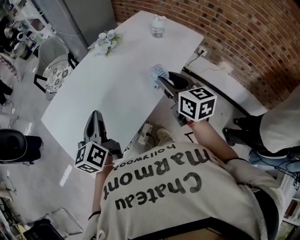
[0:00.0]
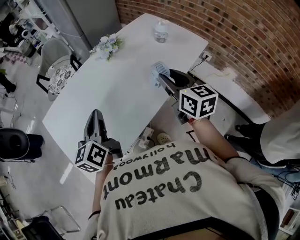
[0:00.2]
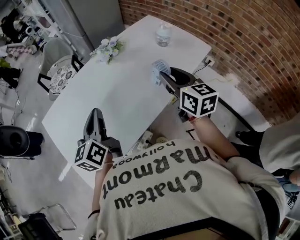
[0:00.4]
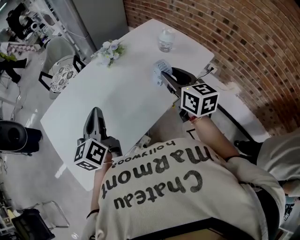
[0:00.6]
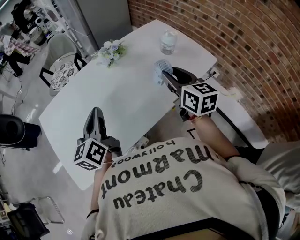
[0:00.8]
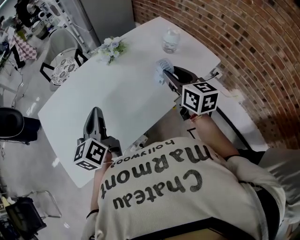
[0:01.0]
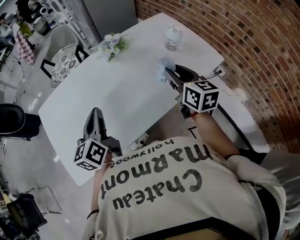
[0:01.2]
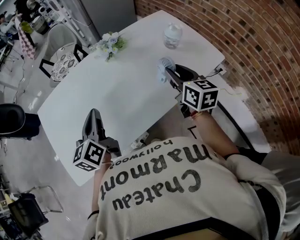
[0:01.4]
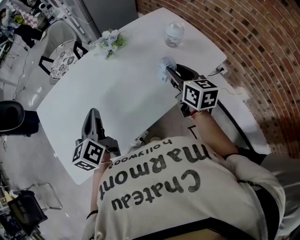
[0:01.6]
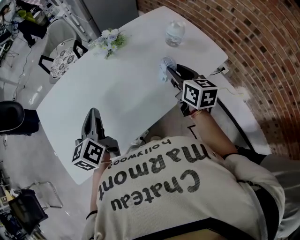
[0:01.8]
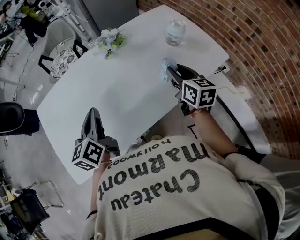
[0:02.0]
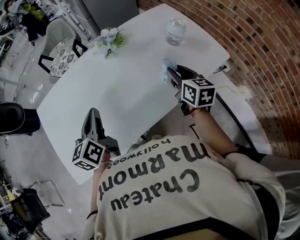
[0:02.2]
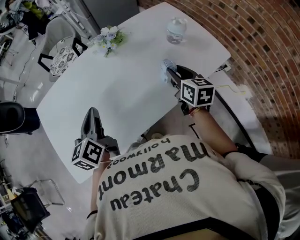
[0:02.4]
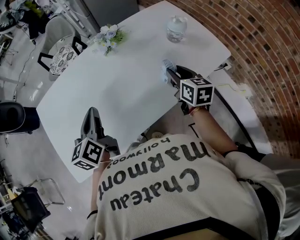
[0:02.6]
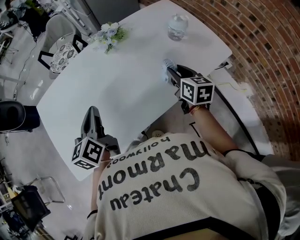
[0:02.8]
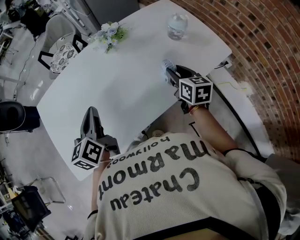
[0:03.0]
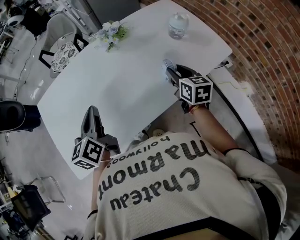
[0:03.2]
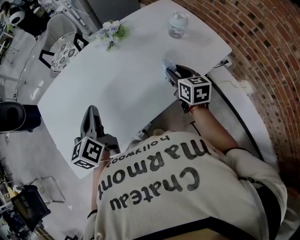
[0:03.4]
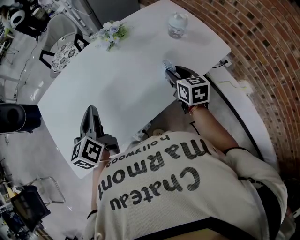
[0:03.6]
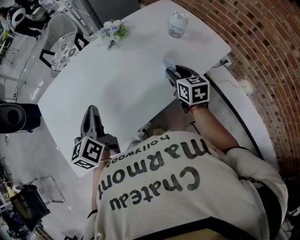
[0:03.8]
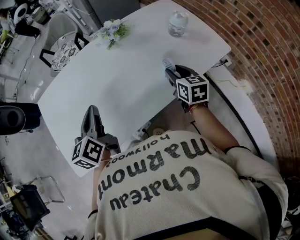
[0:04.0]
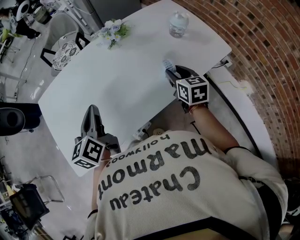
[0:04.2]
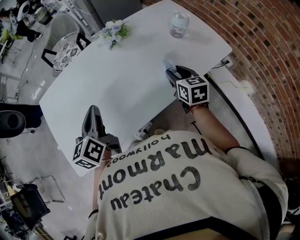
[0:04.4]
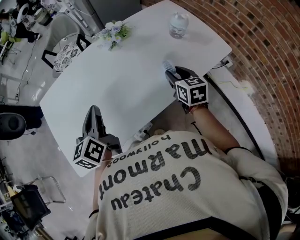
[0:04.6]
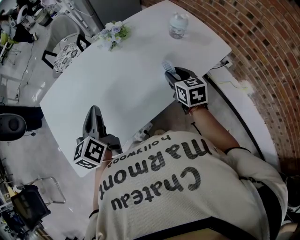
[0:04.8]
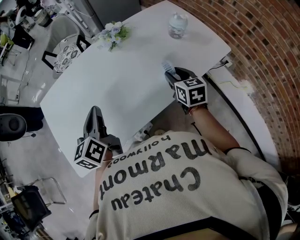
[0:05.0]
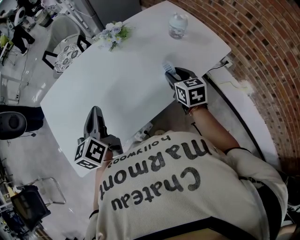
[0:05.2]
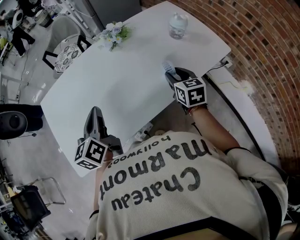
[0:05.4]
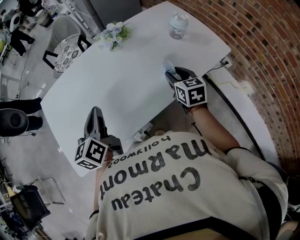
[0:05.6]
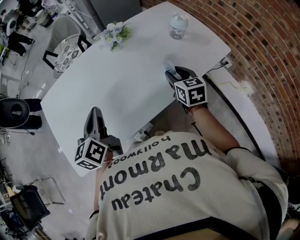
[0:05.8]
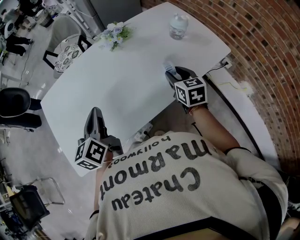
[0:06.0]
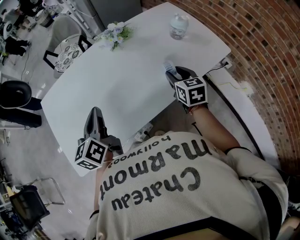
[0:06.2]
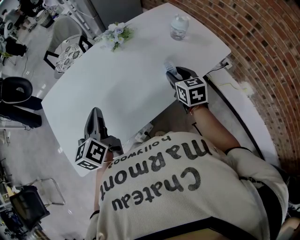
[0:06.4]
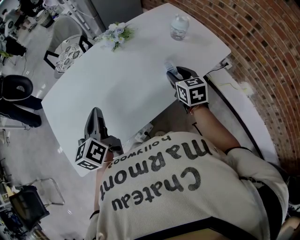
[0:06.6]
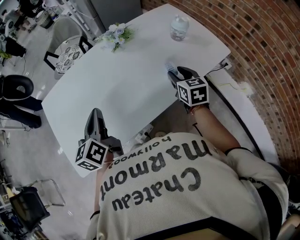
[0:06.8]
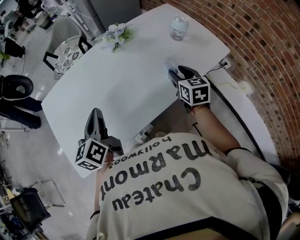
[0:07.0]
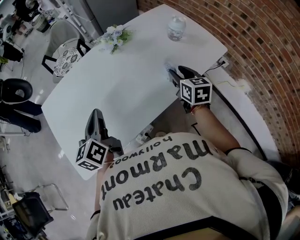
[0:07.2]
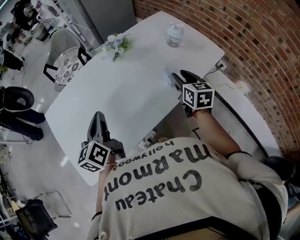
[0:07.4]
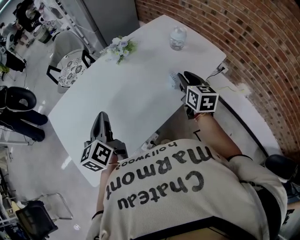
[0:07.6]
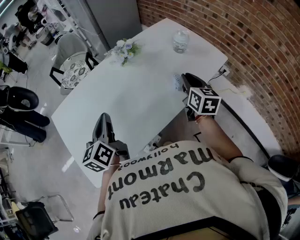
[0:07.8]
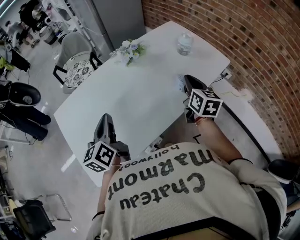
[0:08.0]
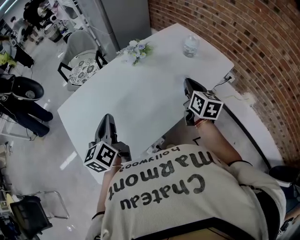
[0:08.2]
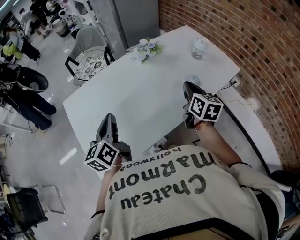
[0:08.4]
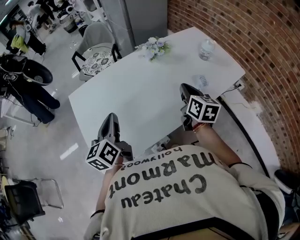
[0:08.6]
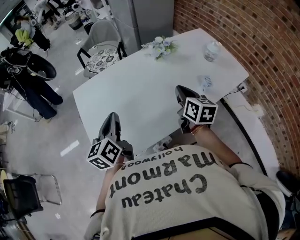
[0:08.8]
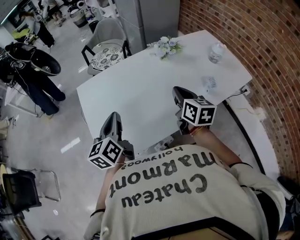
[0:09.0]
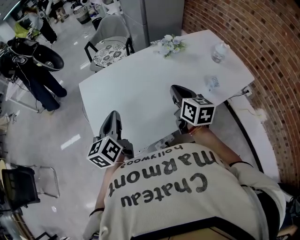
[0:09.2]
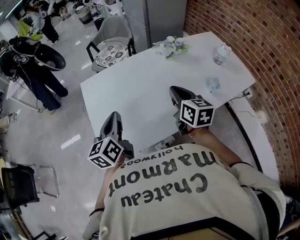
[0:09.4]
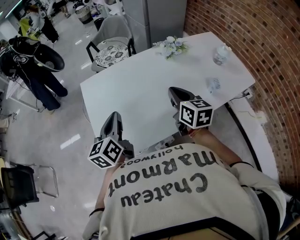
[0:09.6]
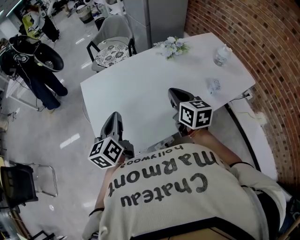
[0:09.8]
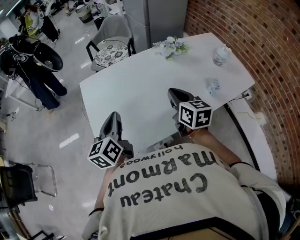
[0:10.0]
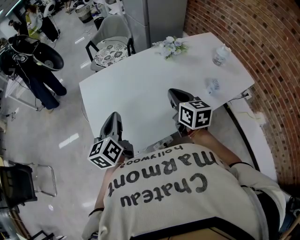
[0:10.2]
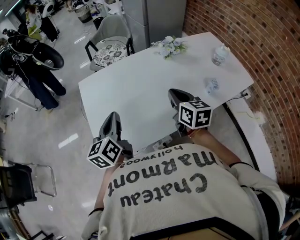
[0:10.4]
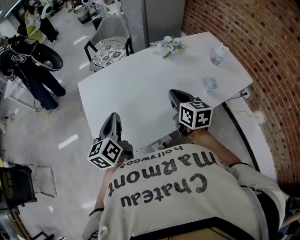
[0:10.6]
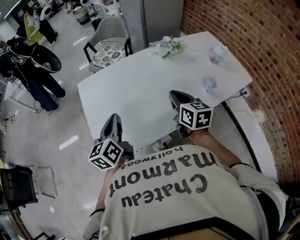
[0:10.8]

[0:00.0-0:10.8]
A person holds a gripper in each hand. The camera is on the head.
0:00.0 to 0:01.6: The right gripper is displaced forward and to the right by approximately 25 cm, while the left gripper shifts approximately 15 cm to the right and forward.
0:01.6 to 0:03.0: The right gripper goes approximately 10 cm downward.
0:03.0 to 0:06.2: There are only small adjustments of the grippers.
0:06.2 to 0:07.8: The right gripper goes about 10 cm upward, rotates about 20 degrees, and closes. Meanwhile the left gripper shifts by approximately 5 cm.
0:07.8 to 0:09.2: The left gripper heads to the left and backward, covering roughly 20 cm. The right gripper is displaced to the left by roughly 25 cm, and changes its angle by about 20 degrees.
0:09.2 to 0:10.8: There are only small adjustments of the grippers.

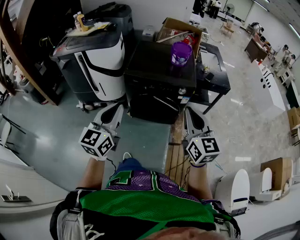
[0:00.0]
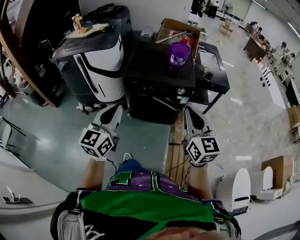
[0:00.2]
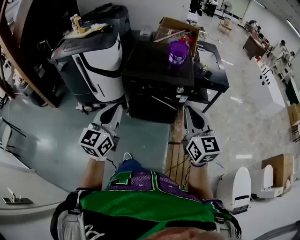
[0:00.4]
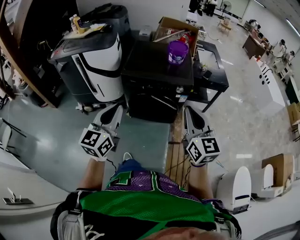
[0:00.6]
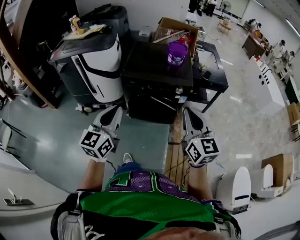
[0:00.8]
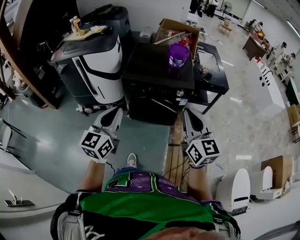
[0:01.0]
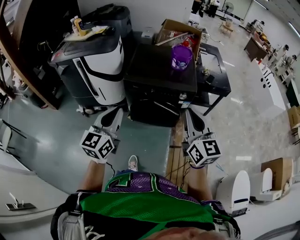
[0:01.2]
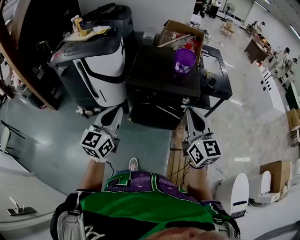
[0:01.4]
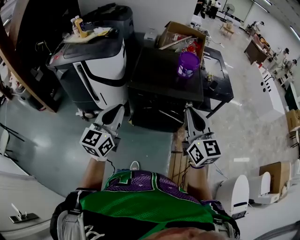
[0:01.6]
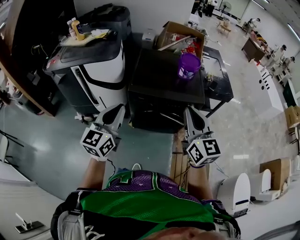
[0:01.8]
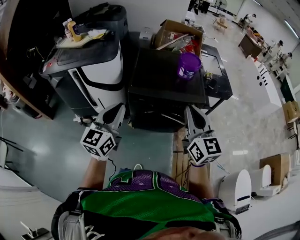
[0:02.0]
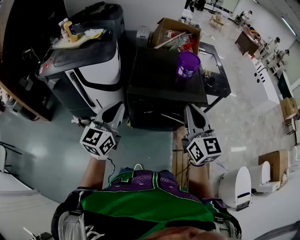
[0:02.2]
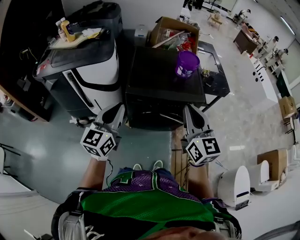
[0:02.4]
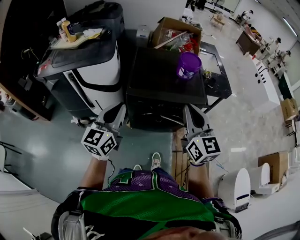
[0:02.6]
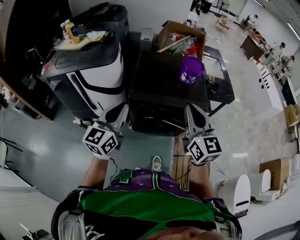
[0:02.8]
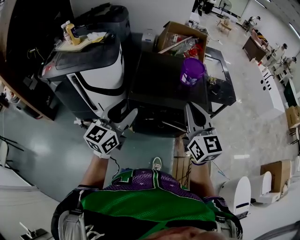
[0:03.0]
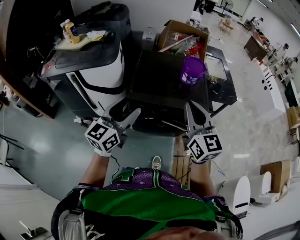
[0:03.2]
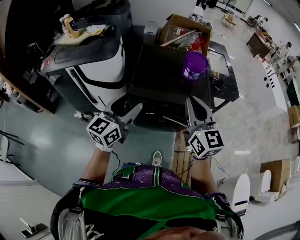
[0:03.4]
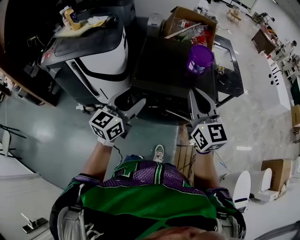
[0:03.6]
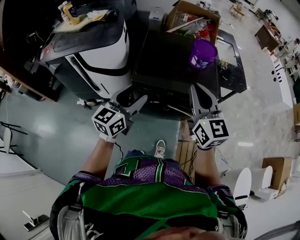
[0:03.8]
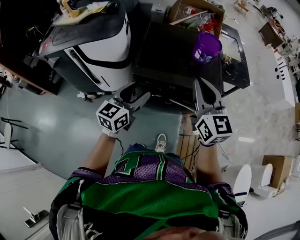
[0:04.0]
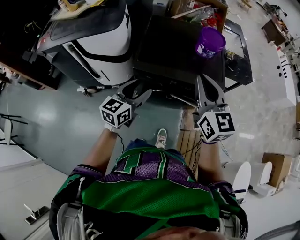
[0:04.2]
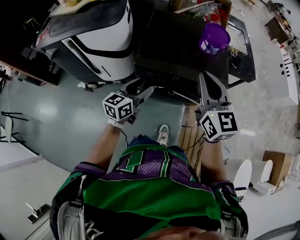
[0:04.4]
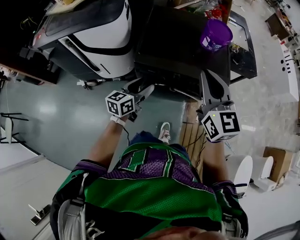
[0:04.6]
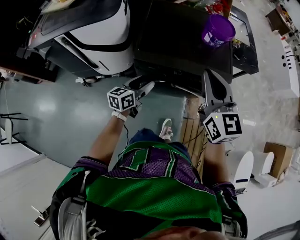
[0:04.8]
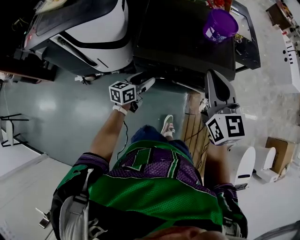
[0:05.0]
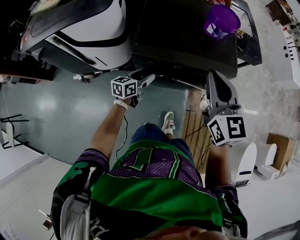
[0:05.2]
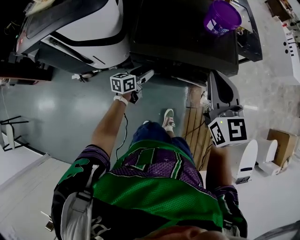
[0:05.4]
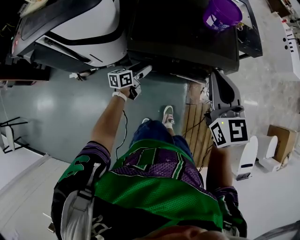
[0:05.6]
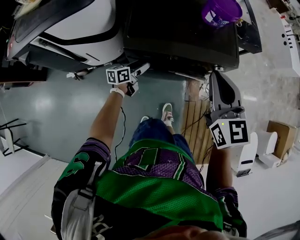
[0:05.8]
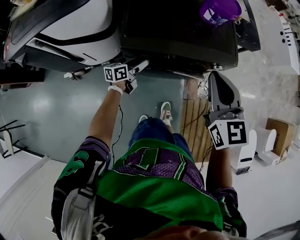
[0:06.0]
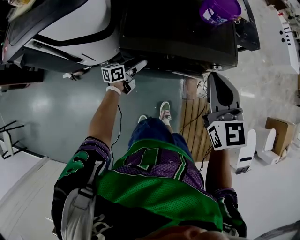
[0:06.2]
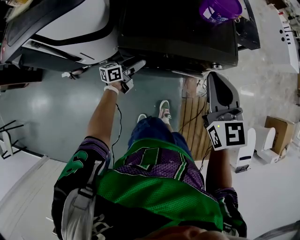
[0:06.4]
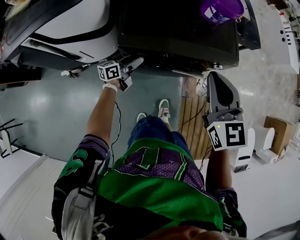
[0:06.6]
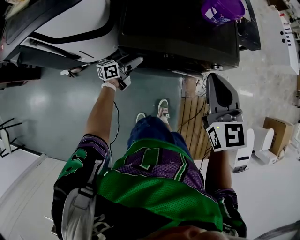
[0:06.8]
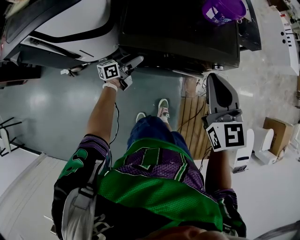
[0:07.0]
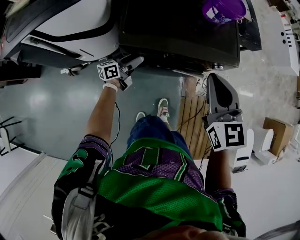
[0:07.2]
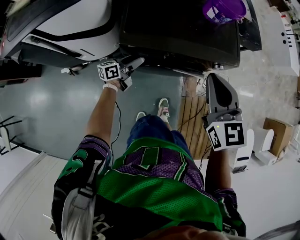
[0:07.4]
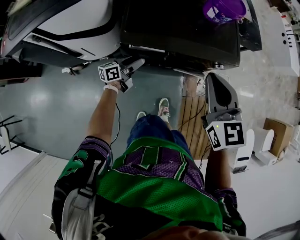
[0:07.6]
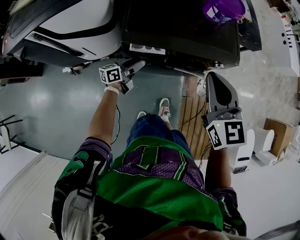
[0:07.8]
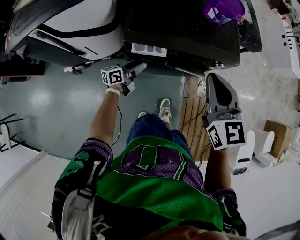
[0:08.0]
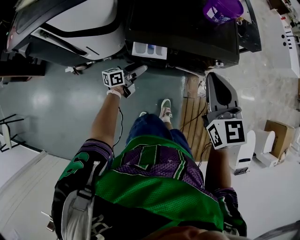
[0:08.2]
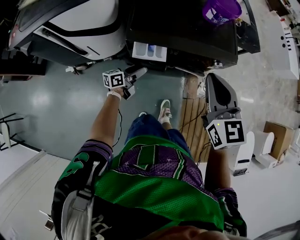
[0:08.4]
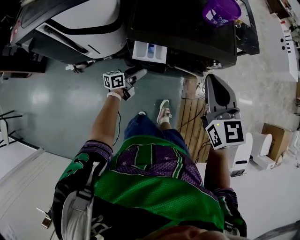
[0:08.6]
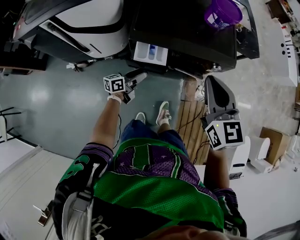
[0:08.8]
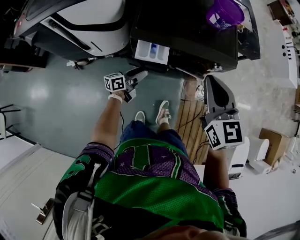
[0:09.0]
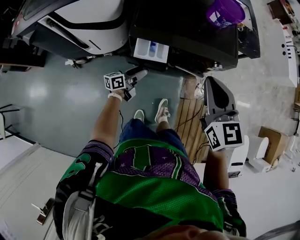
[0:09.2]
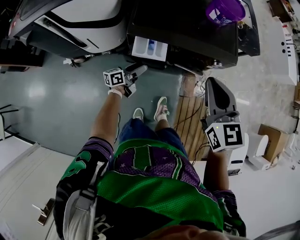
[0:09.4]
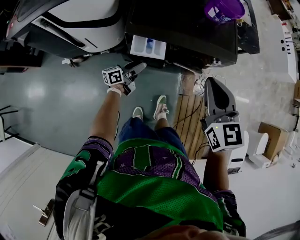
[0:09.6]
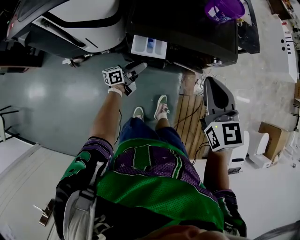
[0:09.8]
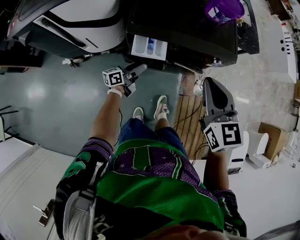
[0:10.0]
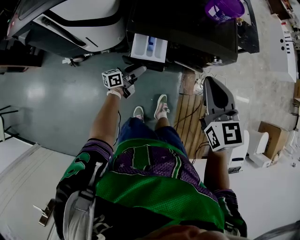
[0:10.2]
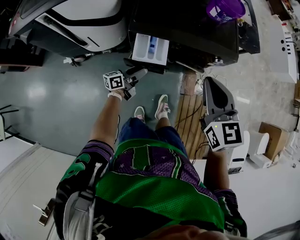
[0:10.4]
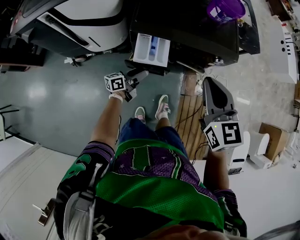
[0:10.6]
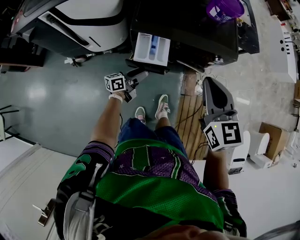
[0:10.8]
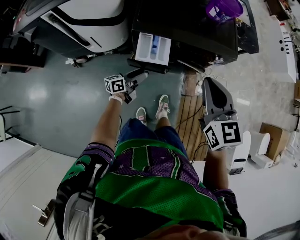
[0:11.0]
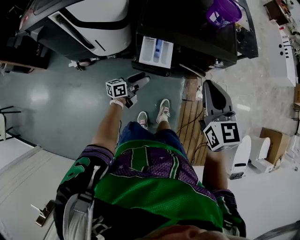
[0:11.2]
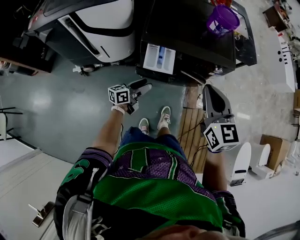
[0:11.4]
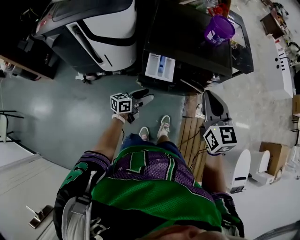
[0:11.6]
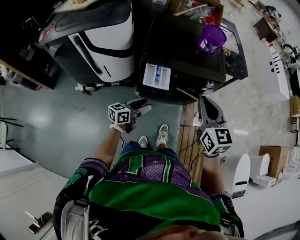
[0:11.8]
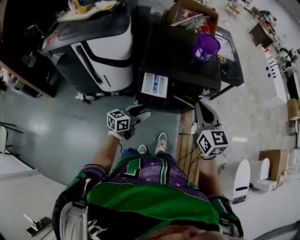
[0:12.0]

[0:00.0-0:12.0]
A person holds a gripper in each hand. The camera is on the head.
0:00.0 to 0:01.6: Both grippers move forward and to the left, some 15 cm.
0:01.6 to 0:03.0: The left gripper goes about 15 cm forward, and opens up. Meanwhile the right gripper heads forward and to the left, covering some 15 cm.
0:03.0 to 0:04.4: The right gripper moves forward and downward, roughly 10 cm. The left gripper shifts about 20 cm downward and forward, and turns by roughly 20 degrees.
0:04.4 to 0:06.0: The right gripper goes approximately 10 cm downward. The left gripper goes approximately 30 cm downward and forward, and rotates about 30 degrees.
0:06.0 to 0:07.6: There are only small adjustments of the grippers.
0:07.6 to 0:09.0: The right gripper moves about 5 cm; the left gripper shifts roughly 10 cm backward.
0:09.0 to 0:10.4: The grippers make only small movements.
0:10.4 to 0:12.0: The right gripper shifts about 10 cm backward and upward. Meanwhile the left gripper is displaced upward and backward by about 20 cm, and turns by about 30 degrees.

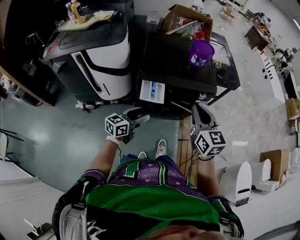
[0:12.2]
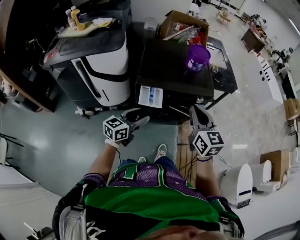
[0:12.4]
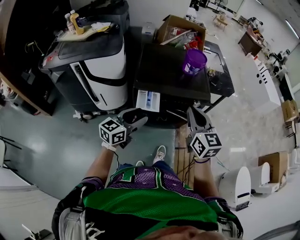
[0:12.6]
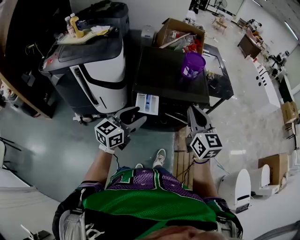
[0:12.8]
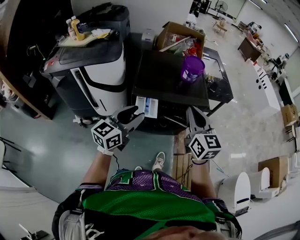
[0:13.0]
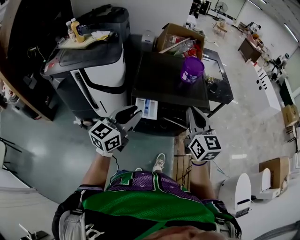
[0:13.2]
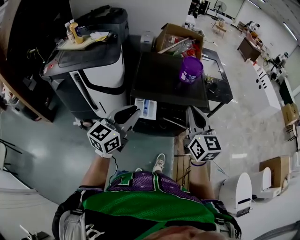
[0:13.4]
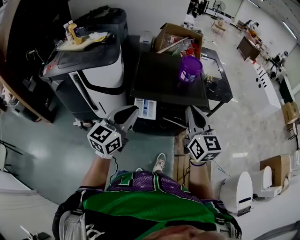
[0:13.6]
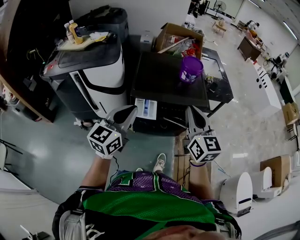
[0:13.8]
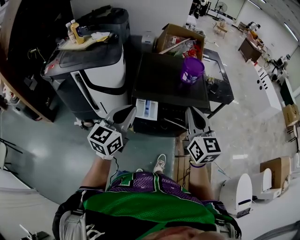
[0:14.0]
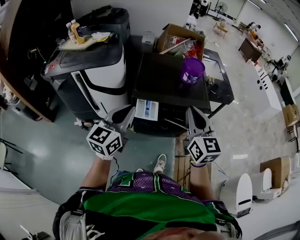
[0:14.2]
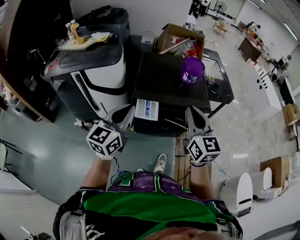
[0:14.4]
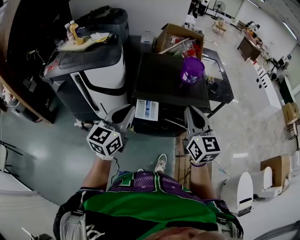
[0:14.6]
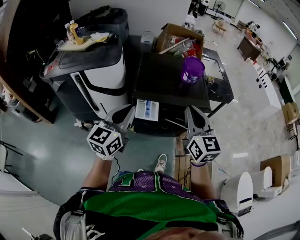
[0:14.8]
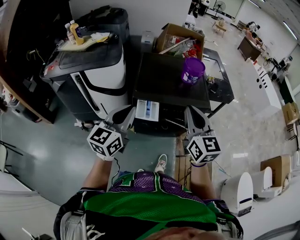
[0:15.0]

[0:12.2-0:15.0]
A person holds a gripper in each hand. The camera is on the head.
0:12.2 to 0:13.6: The left gripper goes roughly 20 cm upward, rotates approximately 30 degrees, and closes its fingers; the right gripper moves upward, about 10 cm.
0:13.6 to 0:15.0: The grippers make only small movements.
